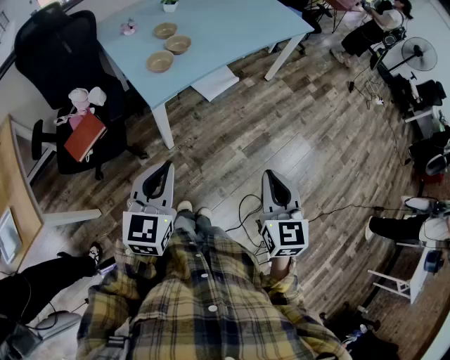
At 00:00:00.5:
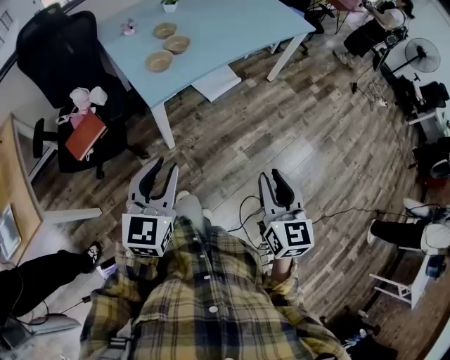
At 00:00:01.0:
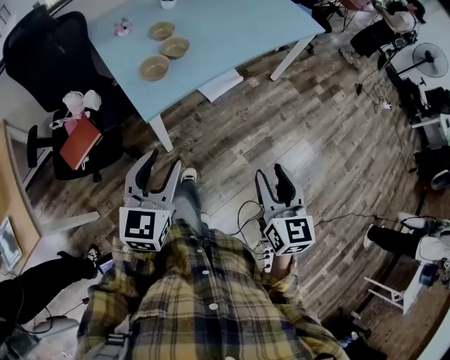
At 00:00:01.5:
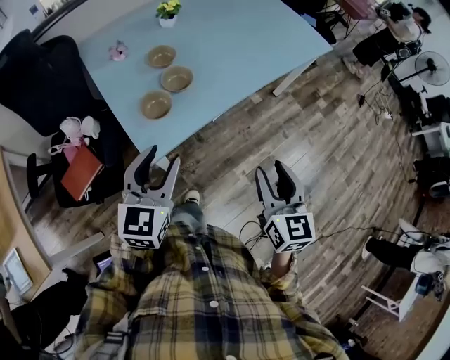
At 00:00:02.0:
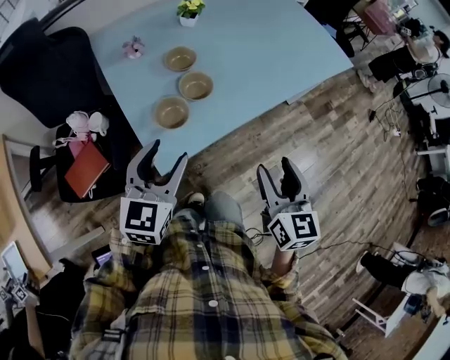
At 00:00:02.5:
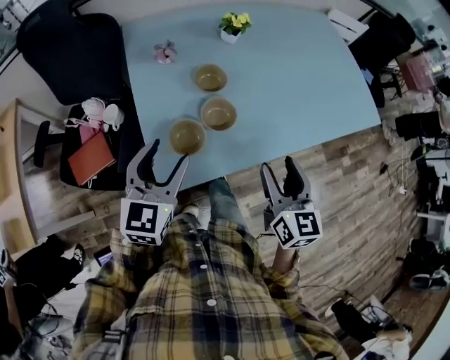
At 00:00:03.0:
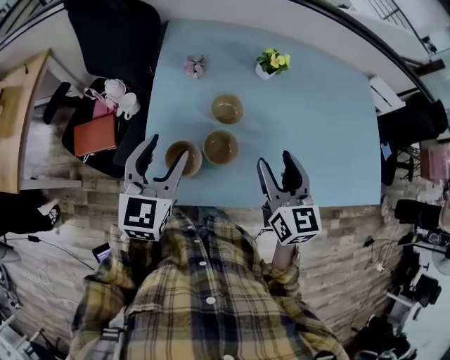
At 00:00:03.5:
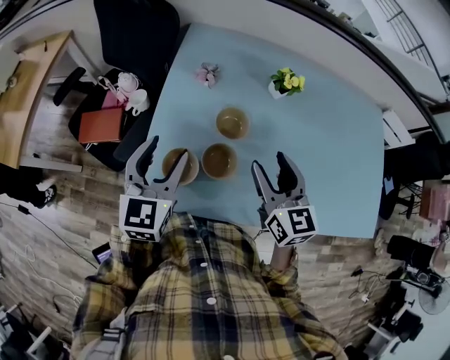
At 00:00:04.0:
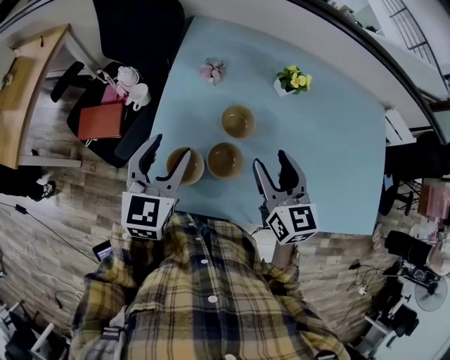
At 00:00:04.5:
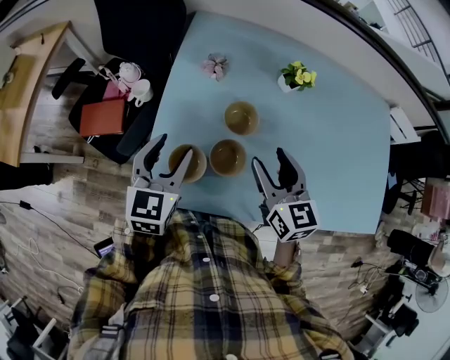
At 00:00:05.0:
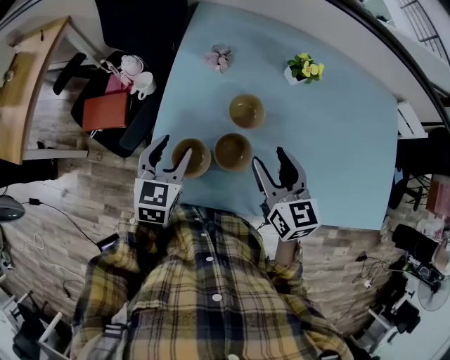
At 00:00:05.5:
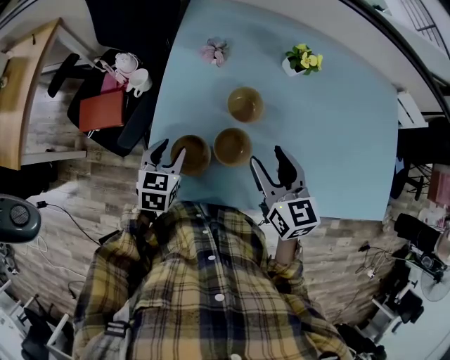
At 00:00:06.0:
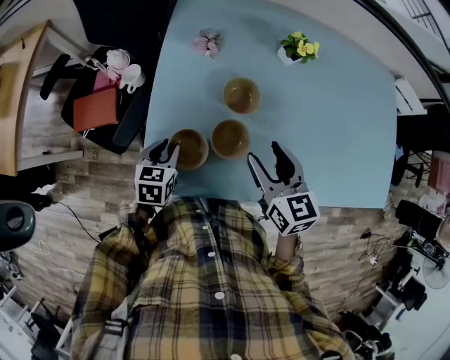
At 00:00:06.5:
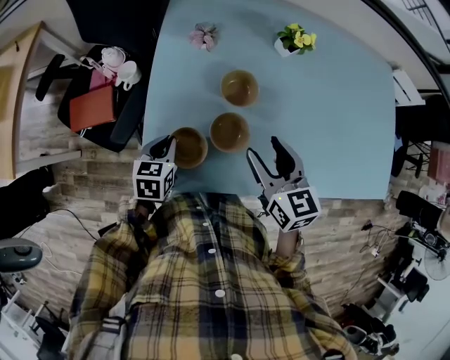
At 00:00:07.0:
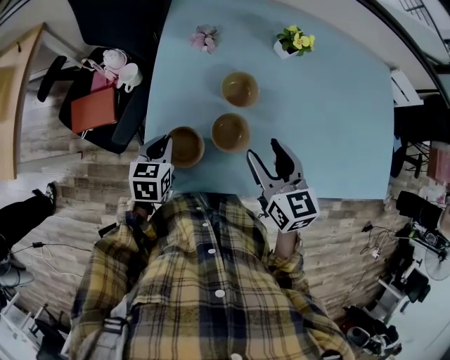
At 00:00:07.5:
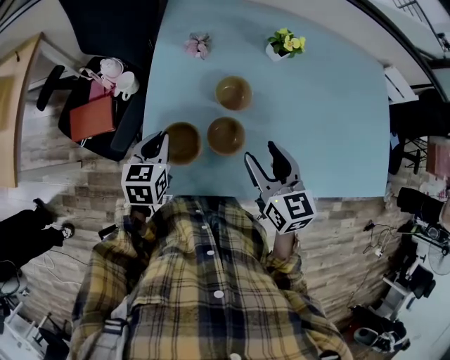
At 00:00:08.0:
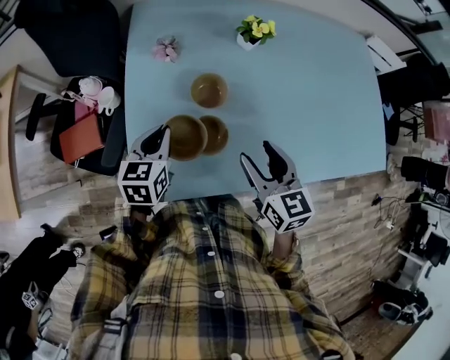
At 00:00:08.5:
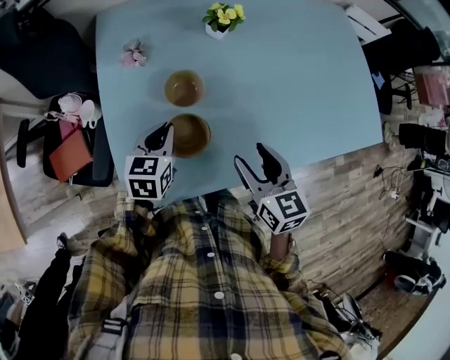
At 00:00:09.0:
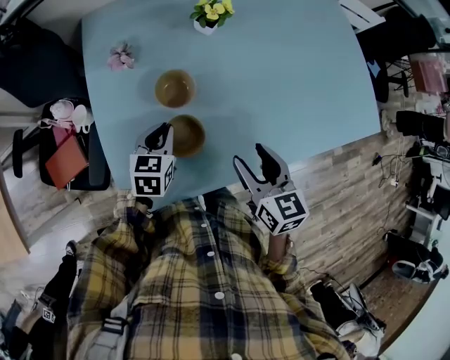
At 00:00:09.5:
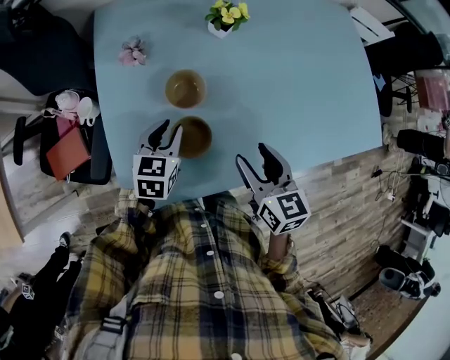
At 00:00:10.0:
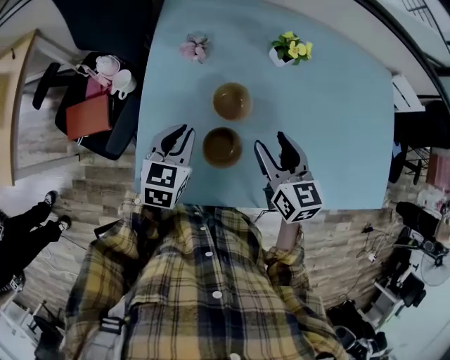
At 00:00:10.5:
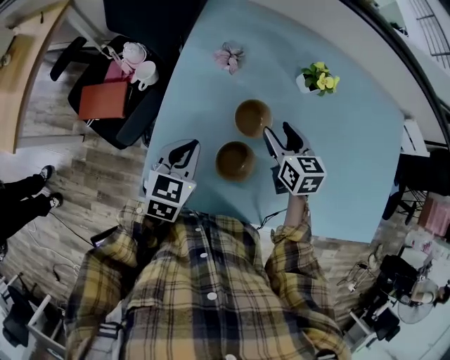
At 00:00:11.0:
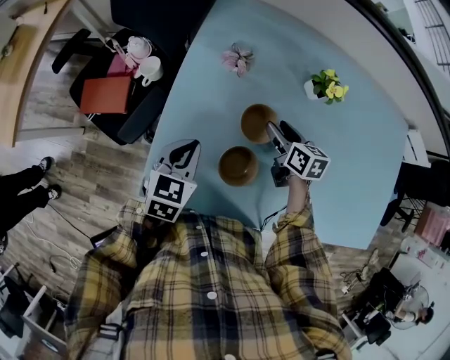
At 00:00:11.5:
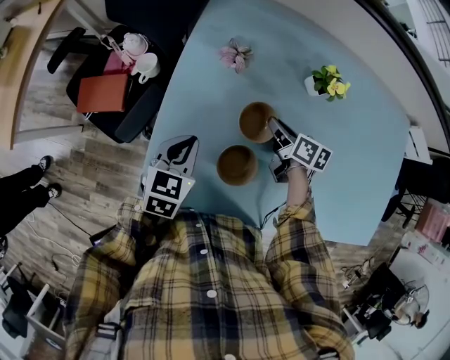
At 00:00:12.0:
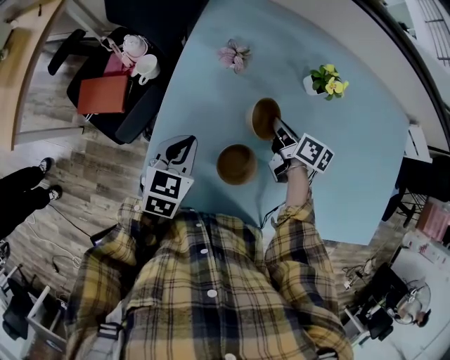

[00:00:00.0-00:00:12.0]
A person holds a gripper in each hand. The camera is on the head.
00:00:00.0 to 00:00:02.0: Both grippers move forward, approximately 30 cm. The right gripper opens; the left gripper opens.
00:00:02.0 to 00:00:04.0: The left gripper ends up roughly 20 cm from where it was, and changes its angle by some 40 degrees; the right gripper shifts by roughly 35 cm, and swivels some 50 degrees.
00:00:04.0 to 00:00:06.0: The left gripper goes some 20 cm downward, changes its angle by roughly 30 degrees, and closes its fingers, while the right gripper goes approximately 5 cm downward.
00:00:06.0 to 00:00:08.0: The right gripper shifts by about 5 cm. The left gripper heads upward, to the right and forward, covering about 10 cm, and closes up.
00:00:08.0 to 00:00:10.0: The right gripper goes some 10 cm forward; the left gripper moves about 10 cm to the right and comes back.
00:00:10.0 to 00:00:12.0: The right gripper heads forward and downward, covering about 20 cm, turns by roughly 40 degrees, and closes.

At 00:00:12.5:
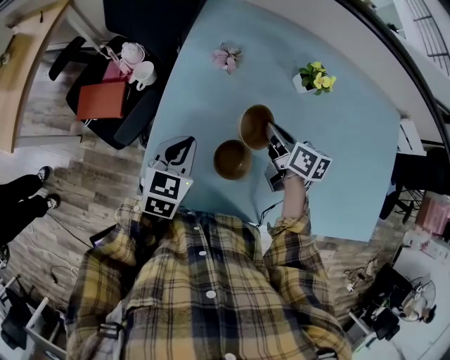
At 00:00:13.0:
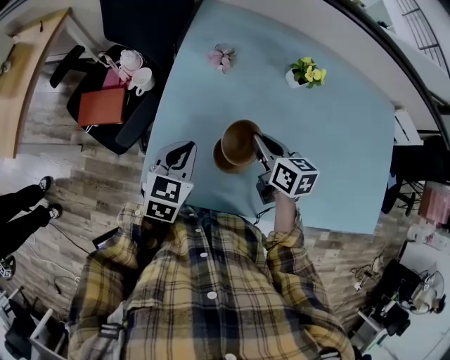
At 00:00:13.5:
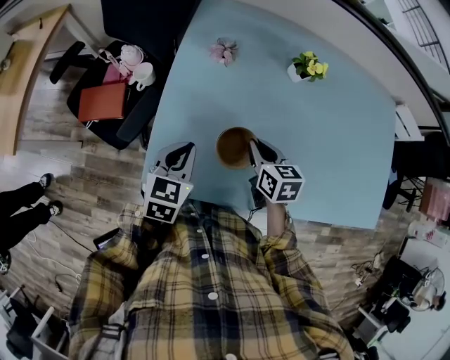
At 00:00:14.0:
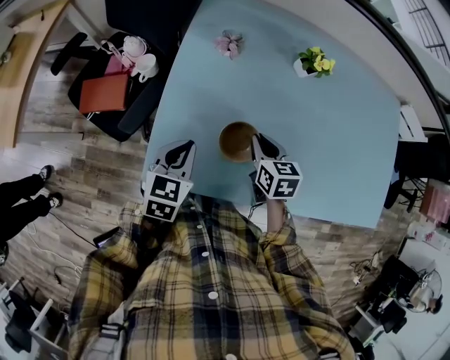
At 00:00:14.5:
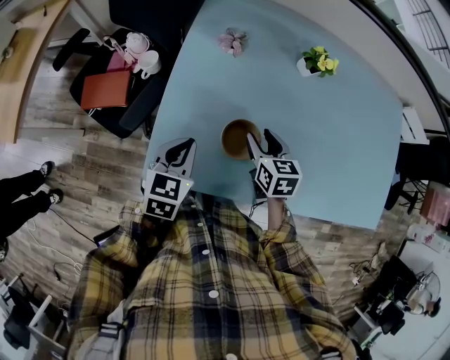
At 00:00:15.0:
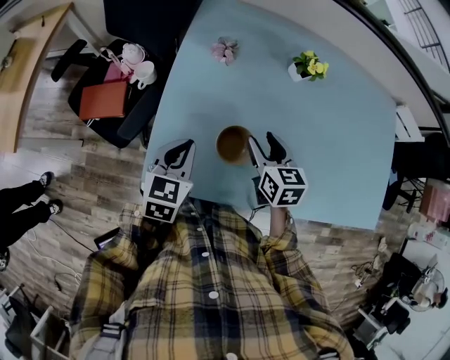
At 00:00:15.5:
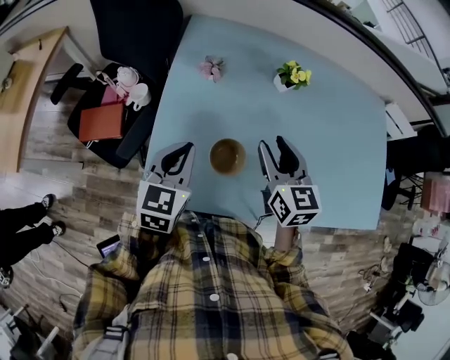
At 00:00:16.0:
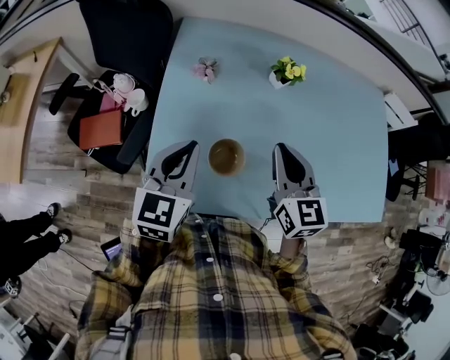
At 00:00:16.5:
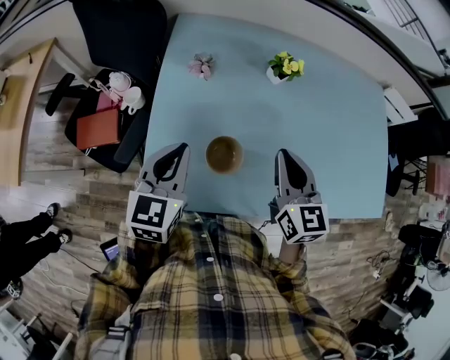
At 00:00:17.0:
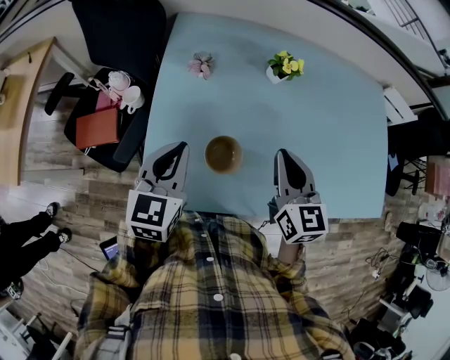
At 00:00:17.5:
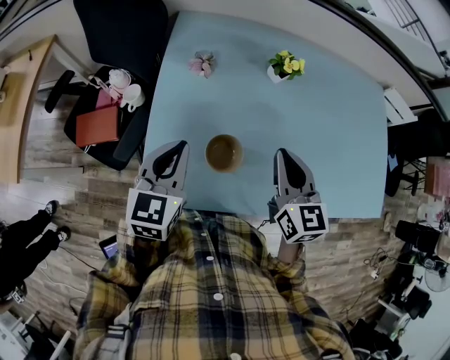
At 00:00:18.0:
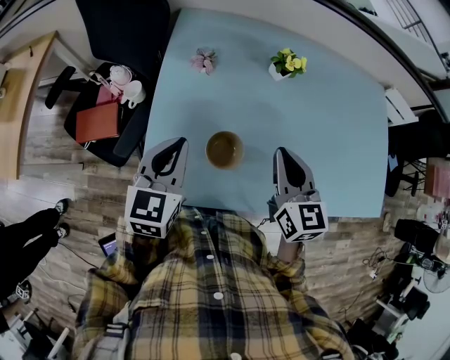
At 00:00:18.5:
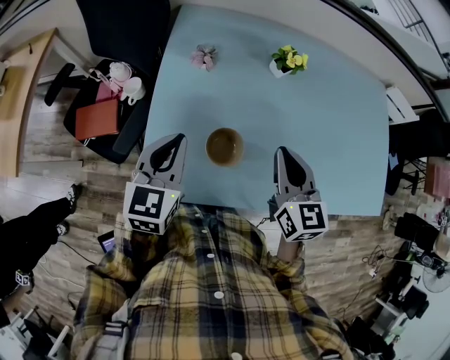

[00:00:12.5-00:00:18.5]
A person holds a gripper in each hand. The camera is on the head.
00:00:12.5 to 00:00:14.5: The left gripper travels backward by some 5 cm, while the right gripper moves backward, some 10 cm, rotates some 30 degrees, and opens.
00:00:14.5 to 00:00:16.5: The left gripper moves upward, some 10 cm; the right gripper is displaced upward by approximately 20 cm, swivels about 30 degrees, and closes its fingers.
00:00:16.5 to 00:00:18.5: Both grippers stay put.

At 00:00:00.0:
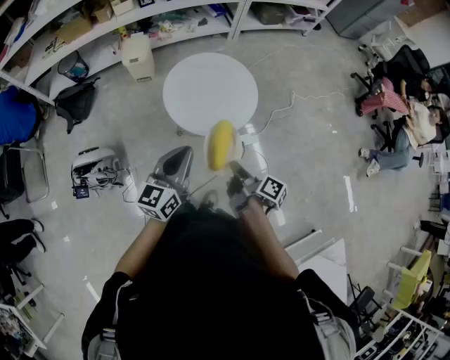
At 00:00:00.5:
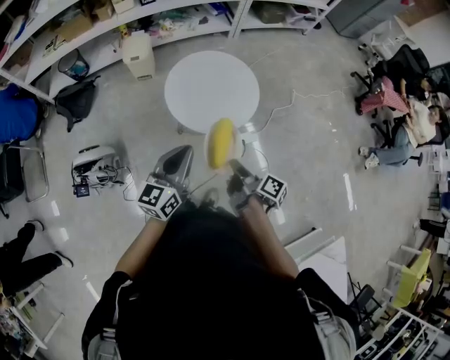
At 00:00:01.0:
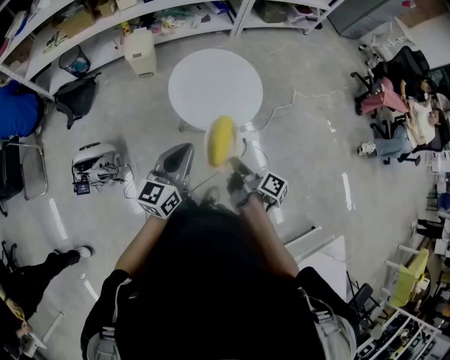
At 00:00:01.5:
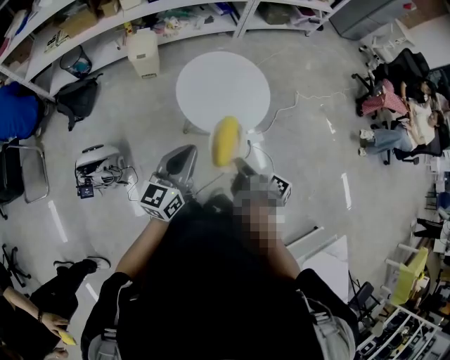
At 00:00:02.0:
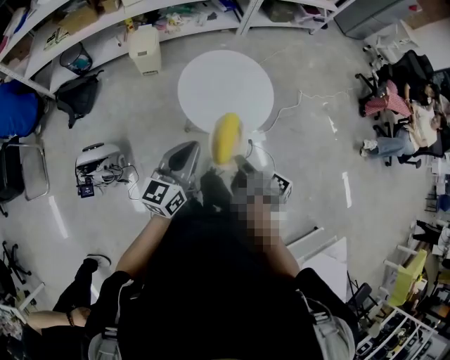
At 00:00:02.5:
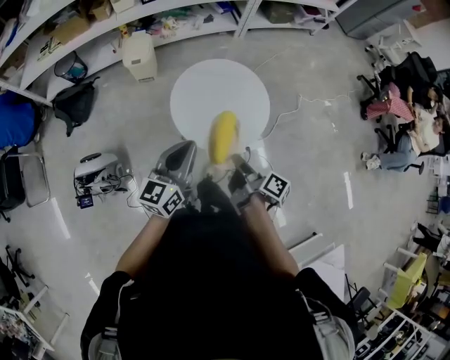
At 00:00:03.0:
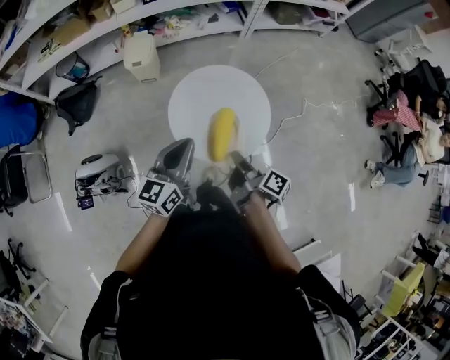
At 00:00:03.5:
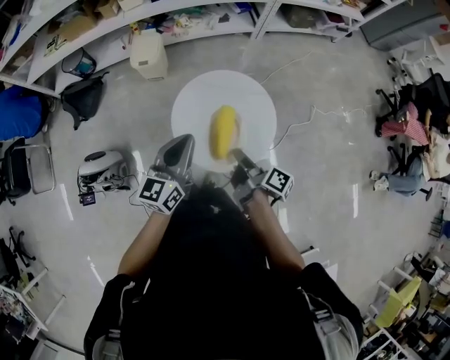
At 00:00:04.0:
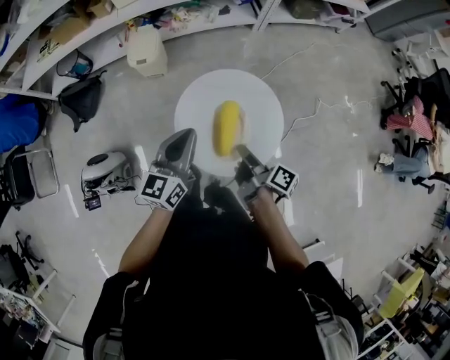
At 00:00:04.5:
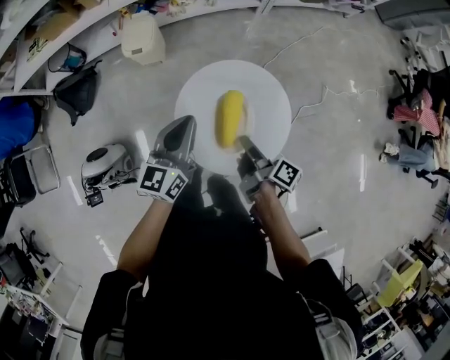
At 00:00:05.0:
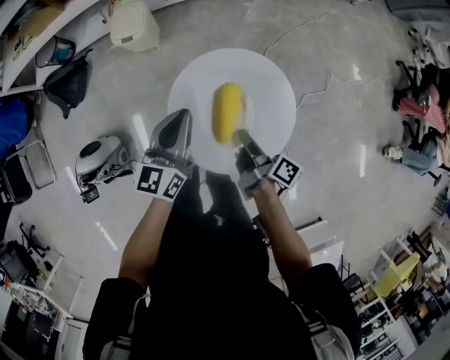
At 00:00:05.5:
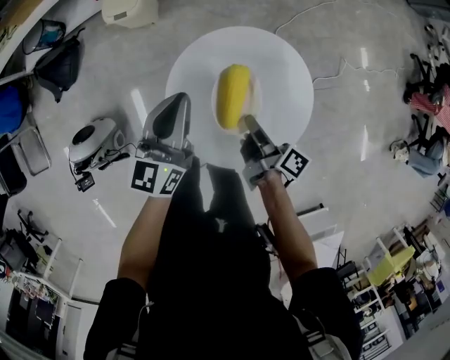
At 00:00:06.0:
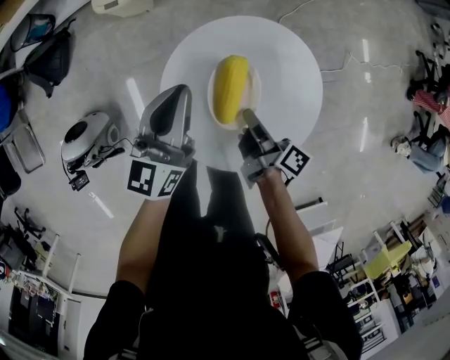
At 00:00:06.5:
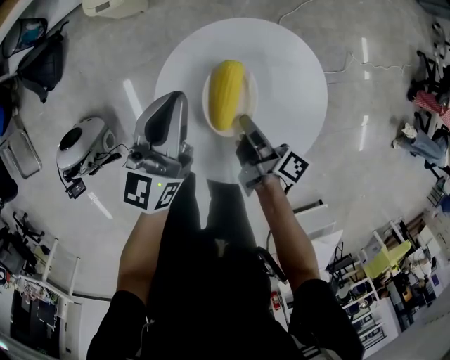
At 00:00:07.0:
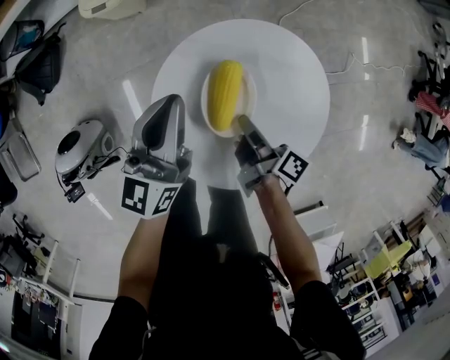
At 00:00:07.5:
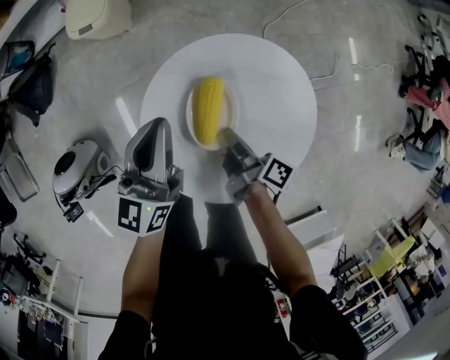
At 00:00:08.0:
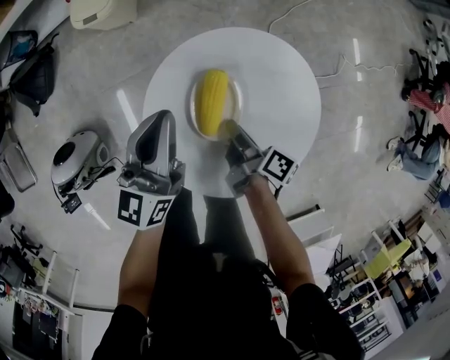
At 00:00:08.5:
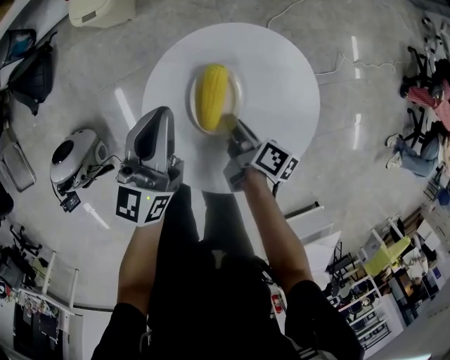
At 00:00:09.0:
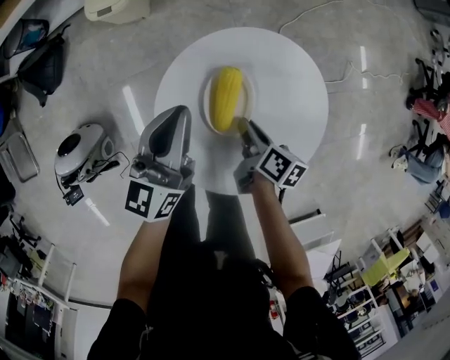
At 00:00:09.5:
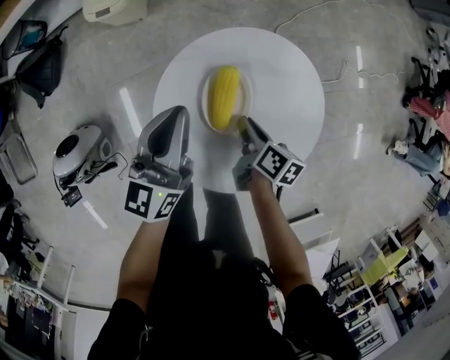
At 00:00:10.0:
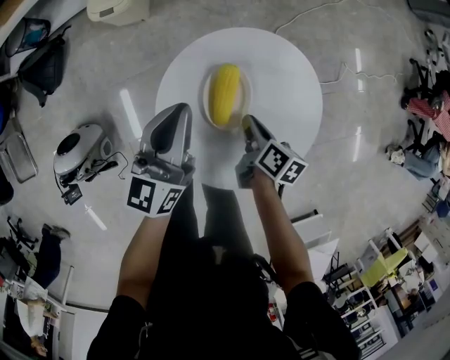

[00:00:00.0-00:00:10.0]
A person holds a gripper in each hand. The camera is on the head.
00:00:00.0 to 00:00:02.0: The left gripper moves about 10 cm.
00:00:02.0 to 00:00:04.0: The left gripper changes place by roughly 25 cm.
00:00:04.0 to 00:00:06.0: The left gripper heads downward, covering approximately 15 cm.
